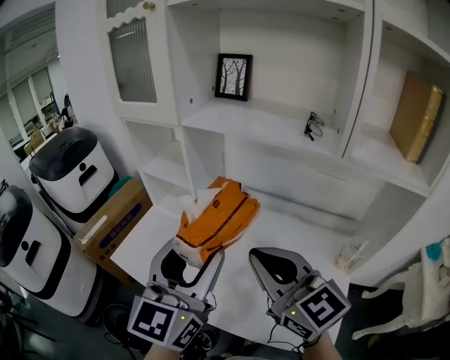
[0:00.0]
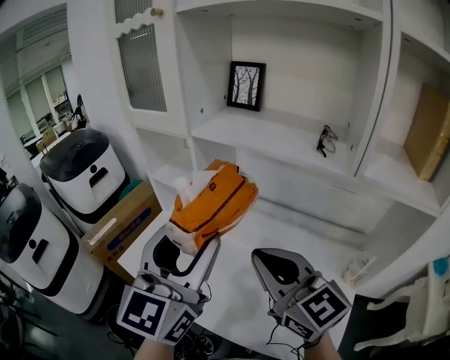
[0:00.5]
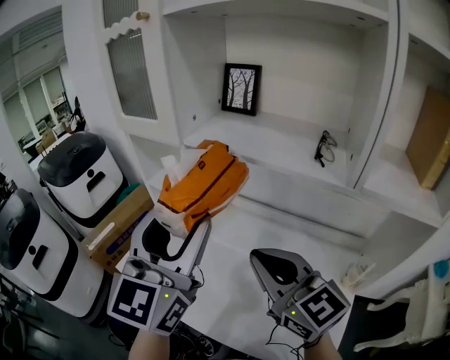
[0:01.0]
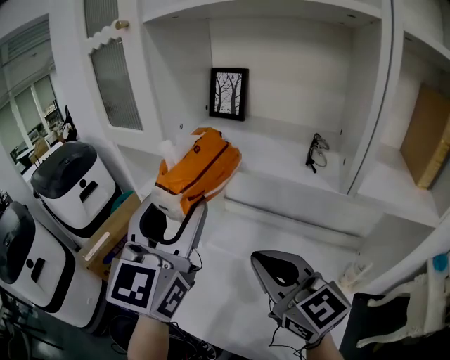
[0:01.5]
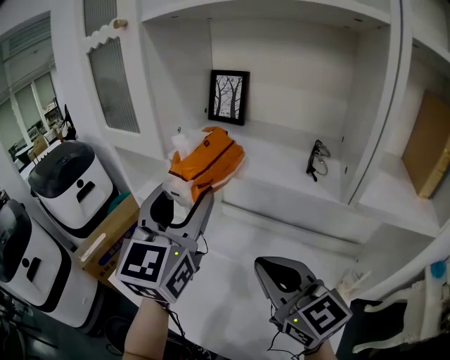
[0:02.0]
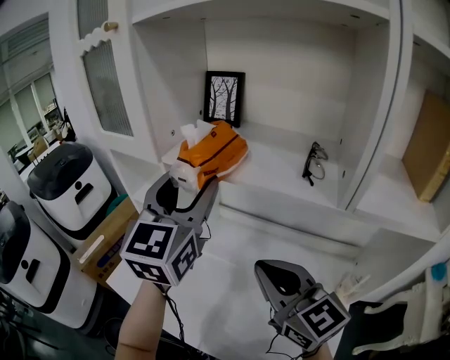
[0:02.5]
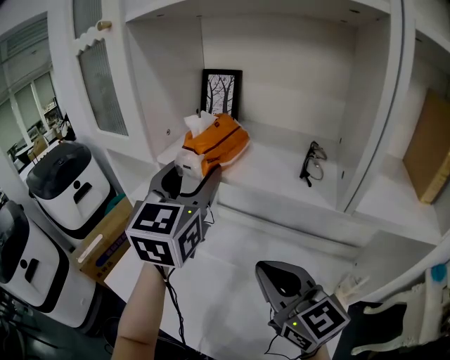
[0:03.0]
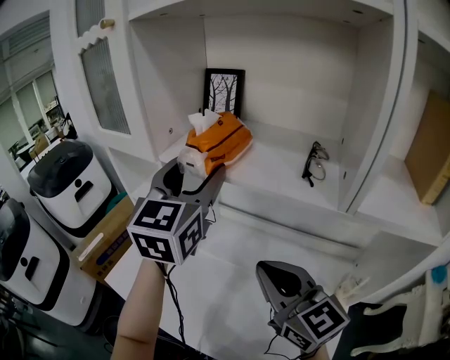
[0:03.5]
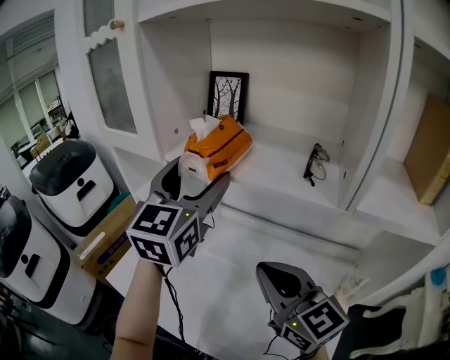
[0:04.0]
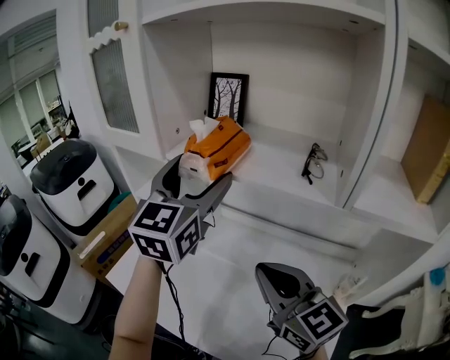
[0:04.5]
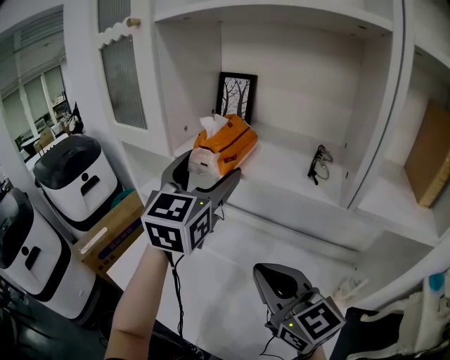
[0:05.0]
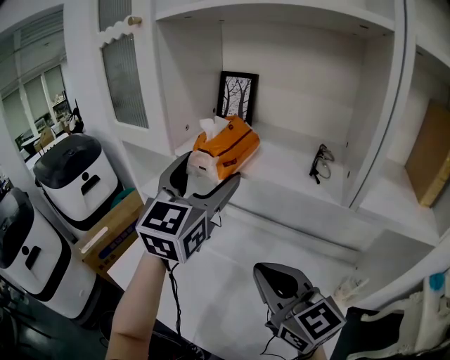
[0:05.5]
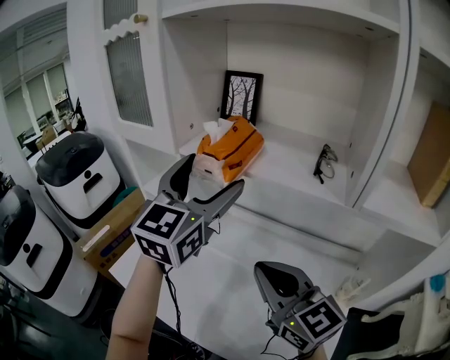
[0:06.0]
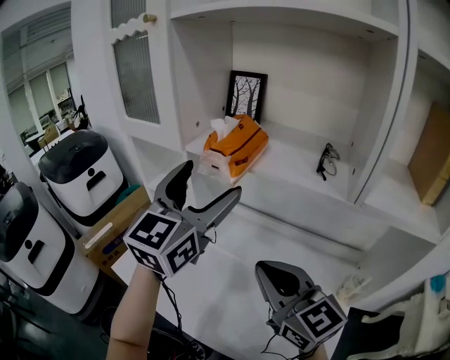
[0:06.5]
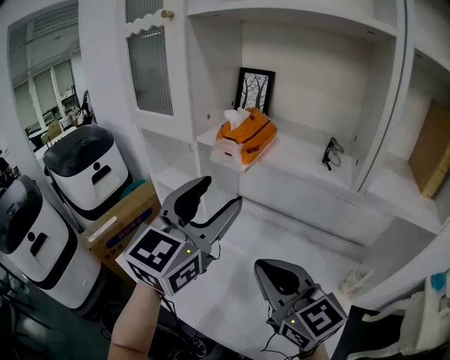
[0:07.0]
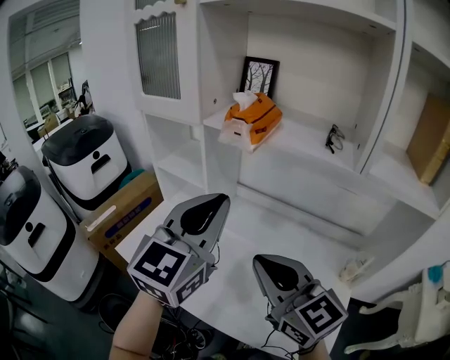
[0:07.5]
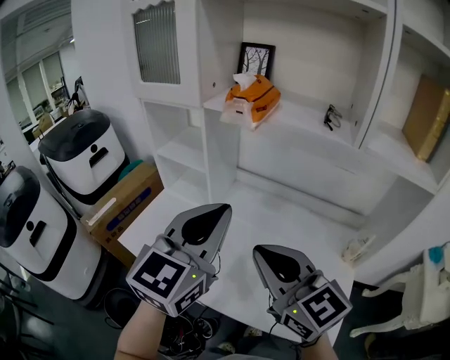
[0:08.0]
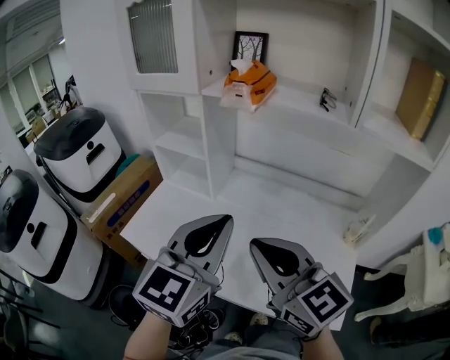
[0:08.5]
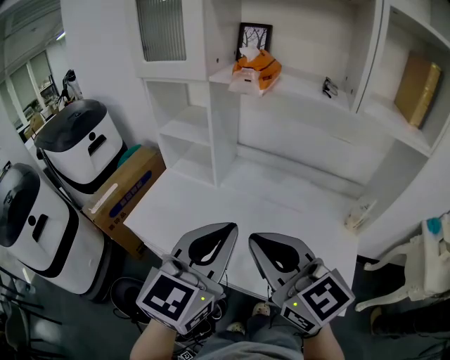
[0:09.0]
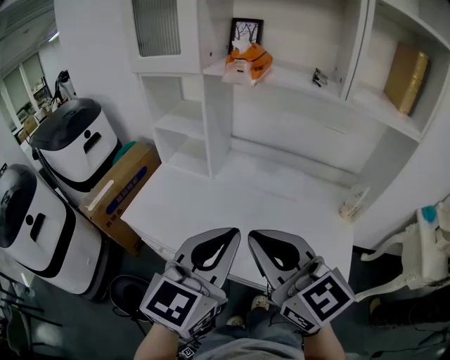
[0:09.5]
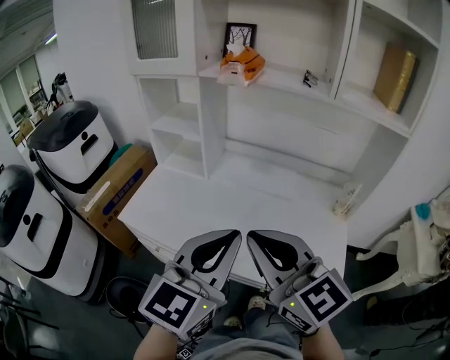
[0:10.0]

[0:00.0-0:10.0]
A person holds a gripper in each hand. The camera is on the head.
0:00.0 to 0:02.0: The left gripper travels forward and upward by about 20 cm, while the right gripper heads forward, covering some 10 cm.
0:02.0 to 0:04.0: The left gripper travels forward by about 5 cm.
0:04.0 to 0:06.0: The grippers move only a little.
0:06.0 to 0:08.0: The left gripper goes some 20 cm backward and downward, and closes its fingers; the right gripper is displaced backward and to the left by approximately 10 cm.
0:08.0 to 0:10.0: Both grippers move backward, some 15 cm.

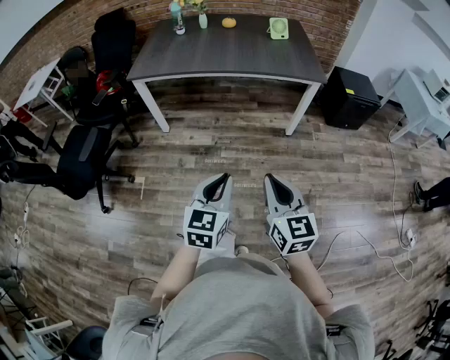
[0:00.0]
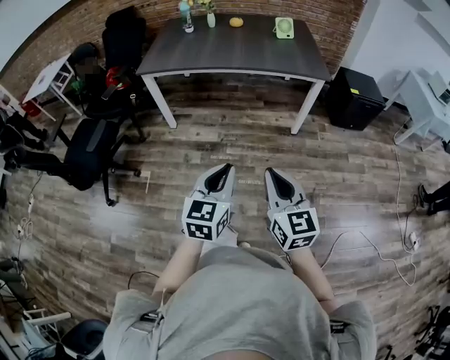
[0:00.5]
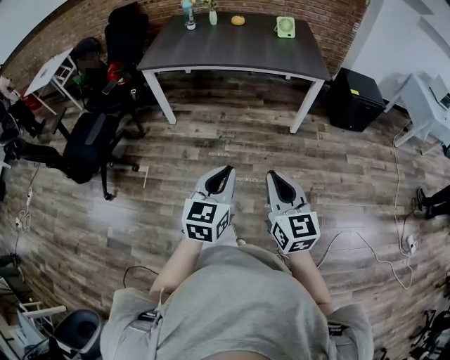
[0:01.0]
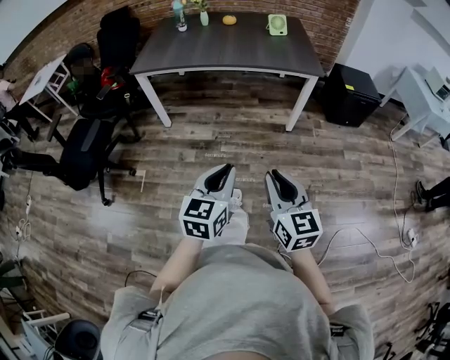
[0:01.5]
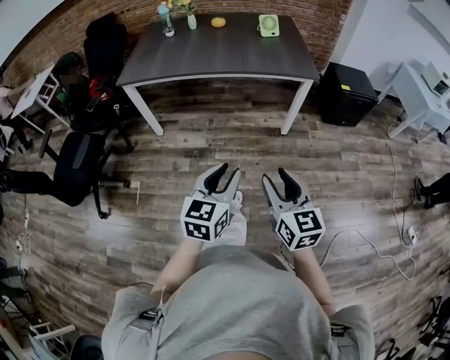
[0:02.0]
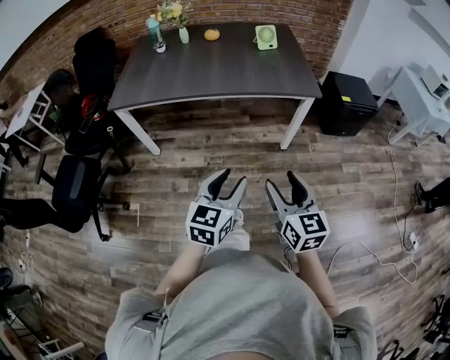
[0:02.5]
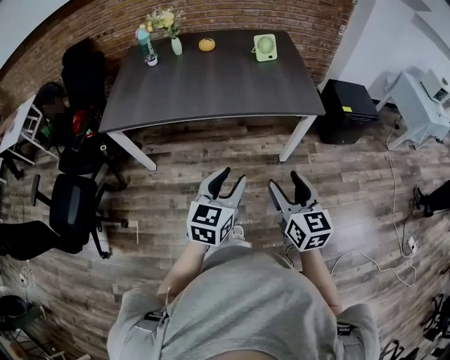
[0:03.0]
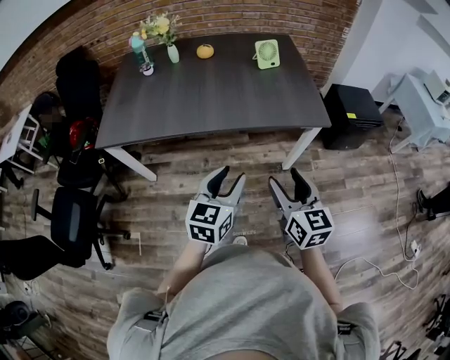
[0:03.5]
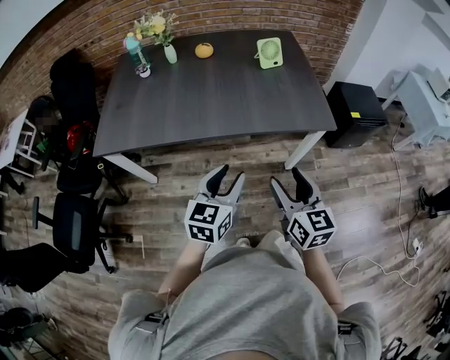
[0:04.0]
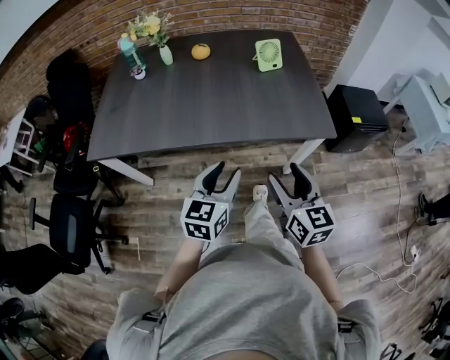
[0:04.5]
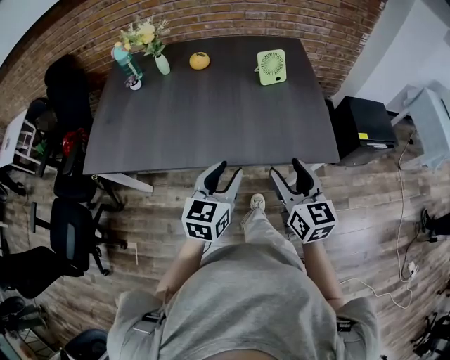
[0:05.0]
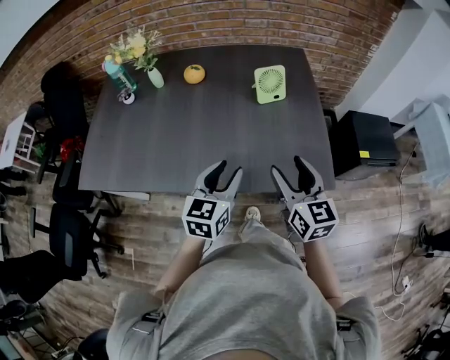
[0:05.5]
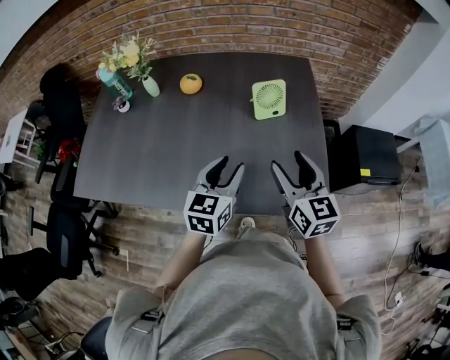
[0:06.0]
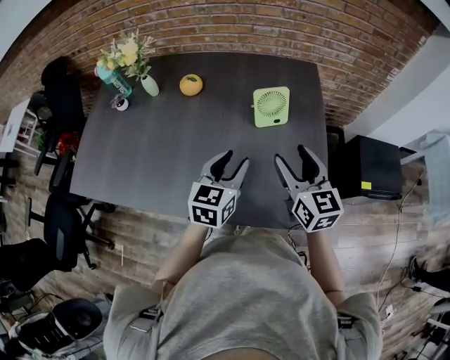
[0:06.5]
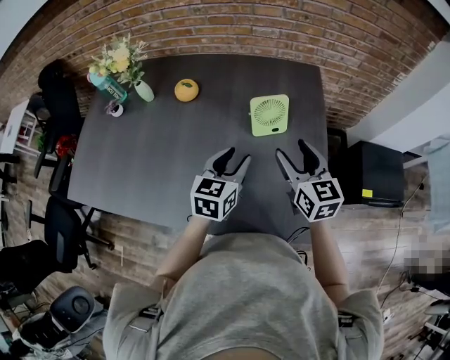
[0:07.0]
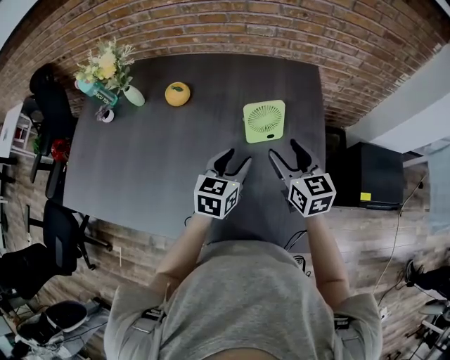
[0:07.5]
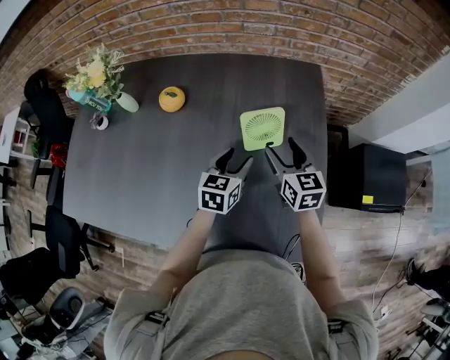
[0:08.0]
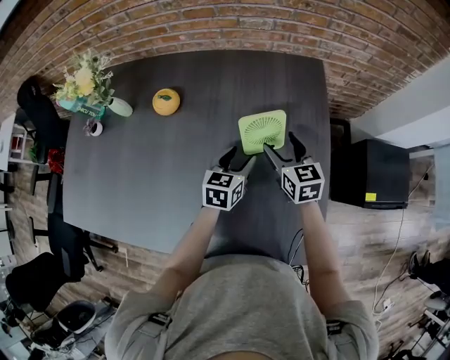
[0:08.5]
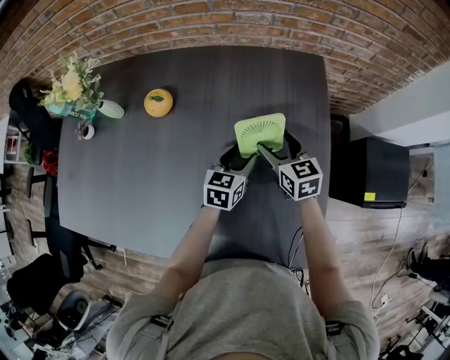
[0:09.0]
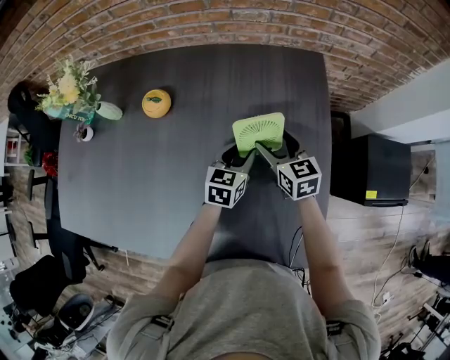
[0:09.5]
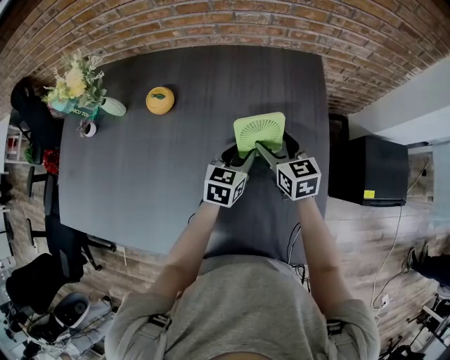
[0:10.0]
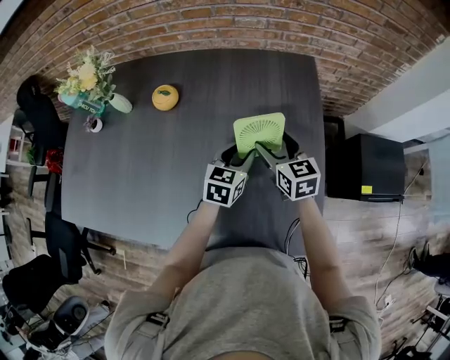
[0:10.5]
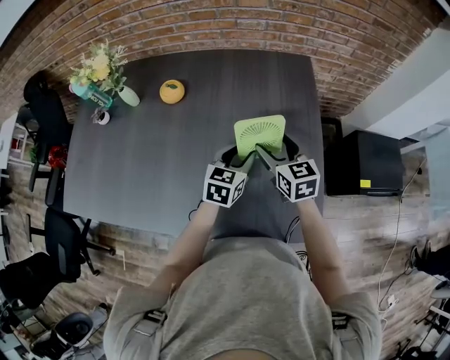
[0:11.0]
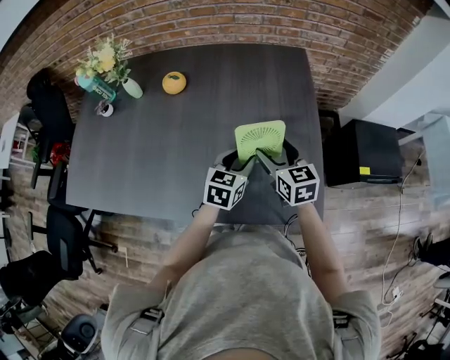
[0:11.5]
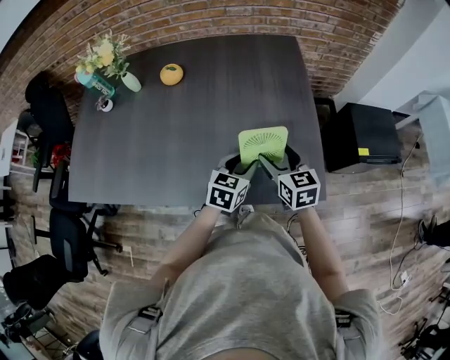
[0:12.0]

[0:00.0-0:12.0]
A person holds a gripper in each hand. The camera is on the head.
0:00.0 to 0:02.0: The two grippers go about 5 cm to the right. The right gripper opens up; the left gripper opens up.
0:02.0 to 0:04.0: The two grippers go approximately 40 cm forward.
0:04.0 to 0:06.0: Both grippers move forward, roughly 40 cm.
0:06.0 to 0:08.0: Both grippers travel together forward and downward, roughly 25 cm.
0:08.0 to 0:10.0: The right gripper moves some 5 cm. Meanwhile the left gripper ends up approximately 5 cm from where it was.
0:10.0 to 0:12.0: Both grippers travel together backward, roughly 25 cm.

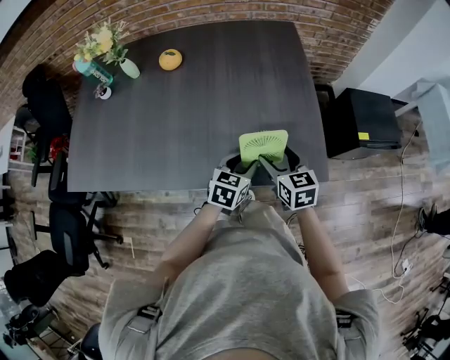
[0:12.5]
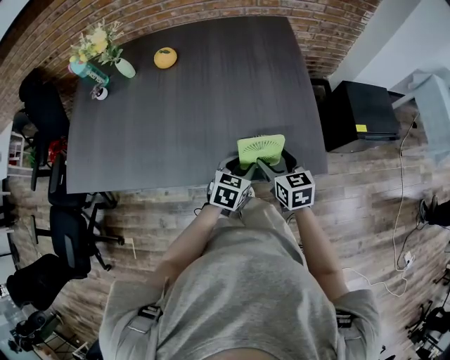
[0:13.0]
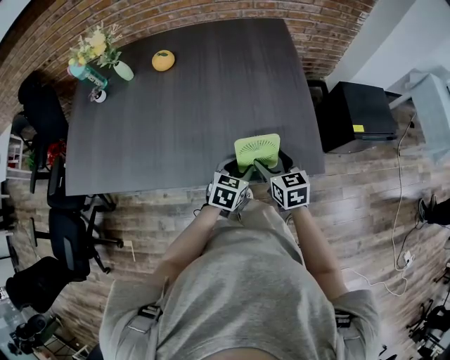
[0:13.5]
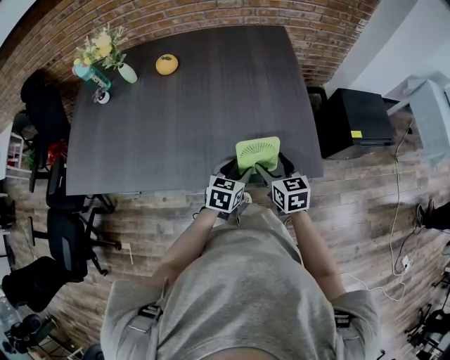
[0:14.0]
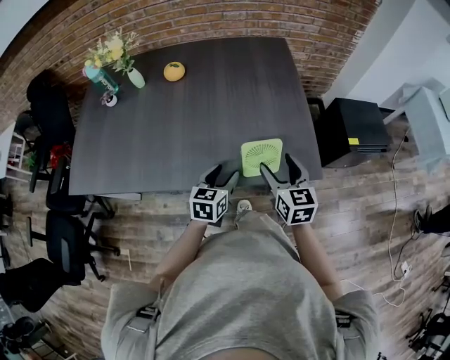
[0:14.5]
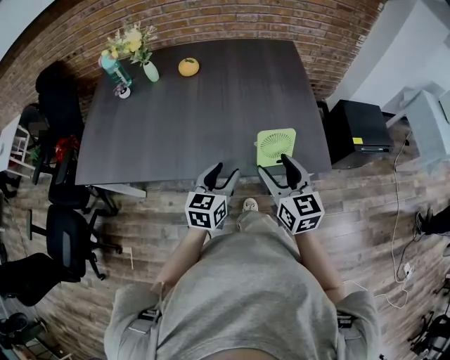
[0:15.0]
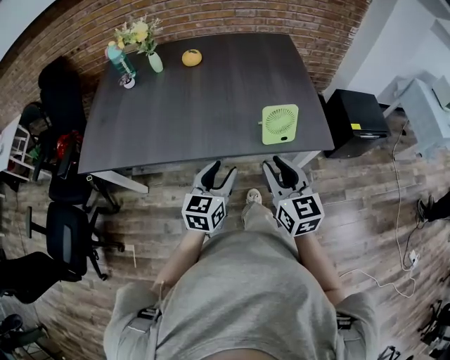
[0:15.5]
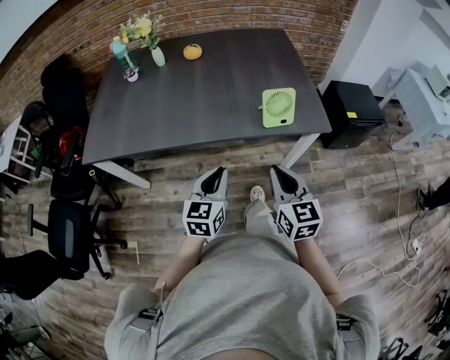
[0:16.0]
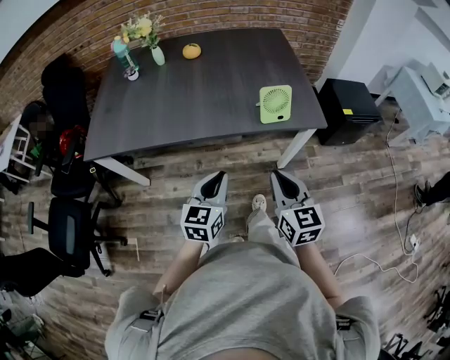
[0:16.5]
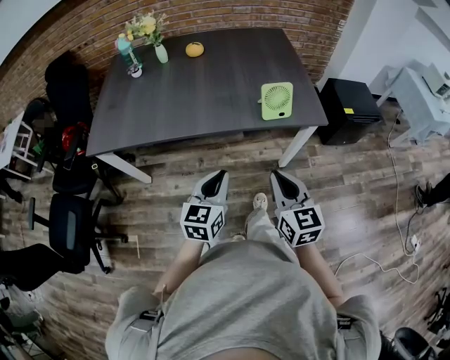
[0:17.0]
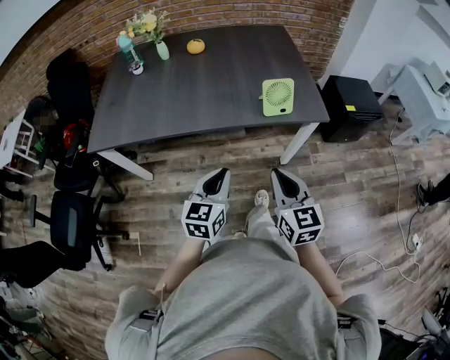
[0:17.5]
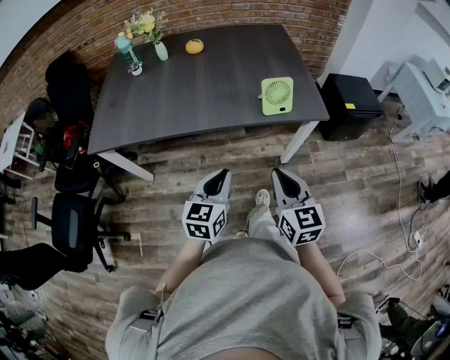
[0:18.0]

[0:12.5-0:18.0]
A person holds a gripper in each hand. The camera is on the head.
0:12.5 to 0:14.5: The right gripper goes approximately 10 cm upward and backward. The left gripper moves to the left and backward, roughly 10 cm.
0:14.5 to 0:16.0: The left gripper is displaced backward and to the left by approximately 25 cm, and closes its fingers, while the right gripper moves backward, roughly 25 cm, and closes its fingers.
0:16.0 to 0:18.0: The grippers both shift backward by some 10 cm.
